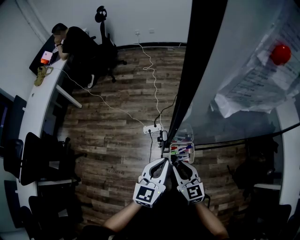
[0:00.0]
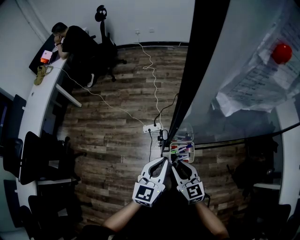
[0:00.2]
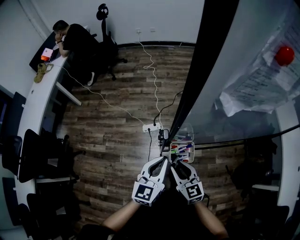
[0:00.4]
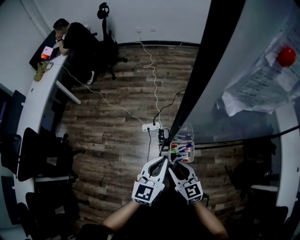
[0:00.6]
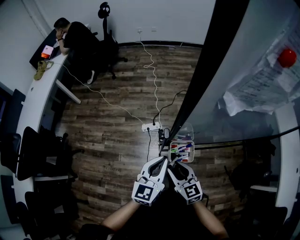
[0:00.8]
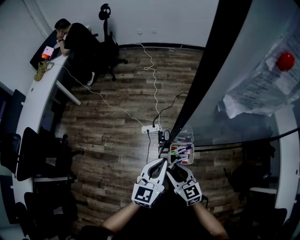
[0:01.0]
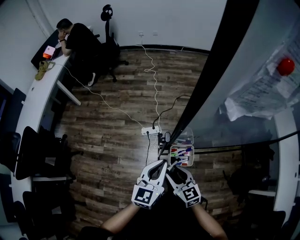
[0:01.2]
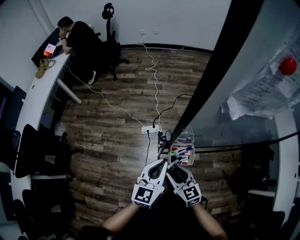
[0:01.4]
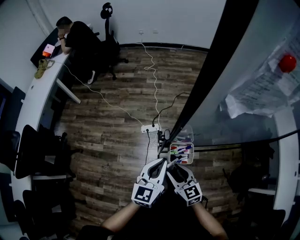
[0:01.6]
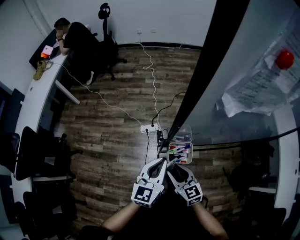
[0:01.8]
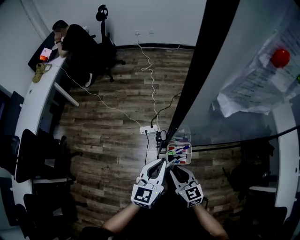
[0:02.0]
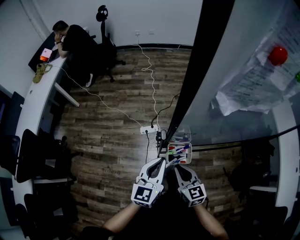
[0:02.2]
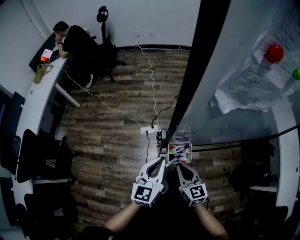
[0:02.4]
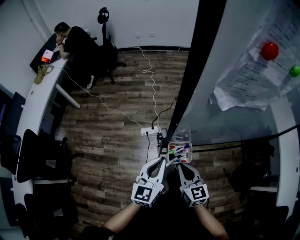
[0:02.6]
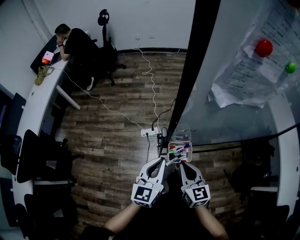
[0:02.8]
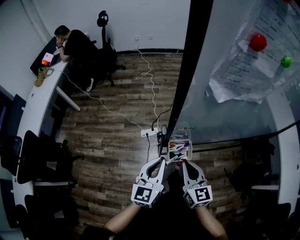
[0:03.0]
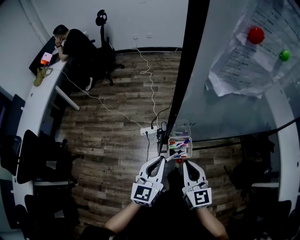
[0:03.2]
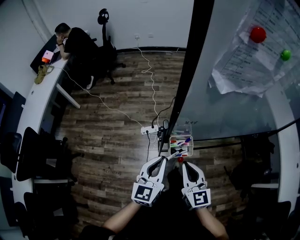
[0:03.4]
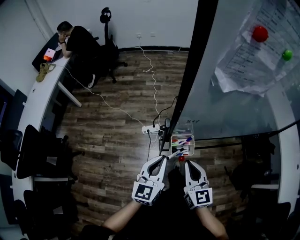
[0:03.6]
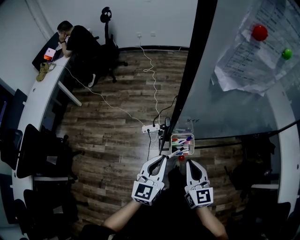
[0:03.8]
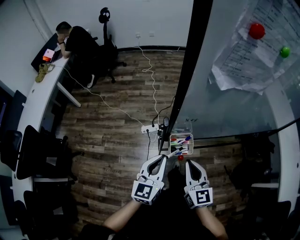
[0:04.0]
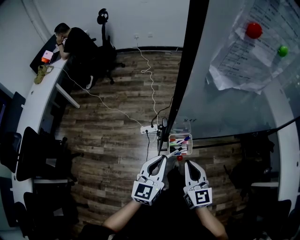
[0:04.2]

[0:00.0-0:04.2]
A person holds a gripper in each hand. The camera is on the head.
0:00.0 to 0:01.4: The grippers move only a little.
0:01.4 to 0:02.8: The right gripper goes some 10 cm upward and to the right, and closes.
0:02.8 to 0:04.2: The grippers move only a little.

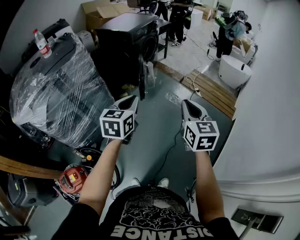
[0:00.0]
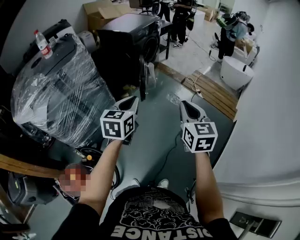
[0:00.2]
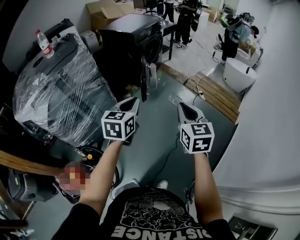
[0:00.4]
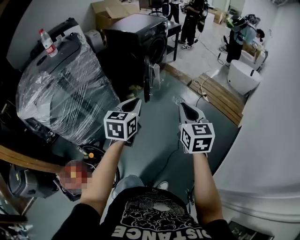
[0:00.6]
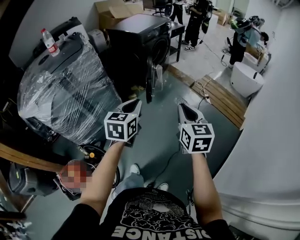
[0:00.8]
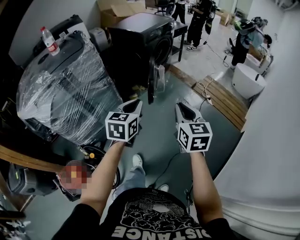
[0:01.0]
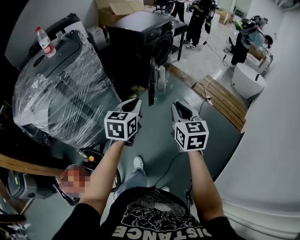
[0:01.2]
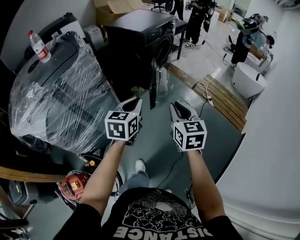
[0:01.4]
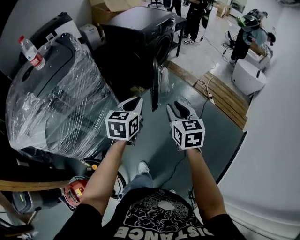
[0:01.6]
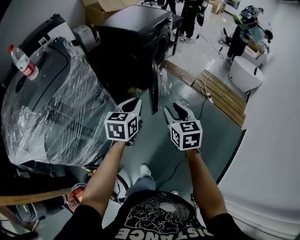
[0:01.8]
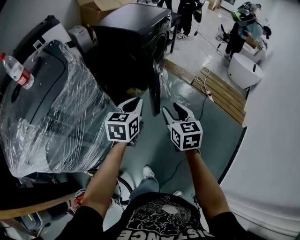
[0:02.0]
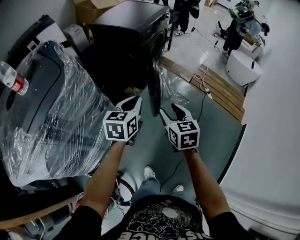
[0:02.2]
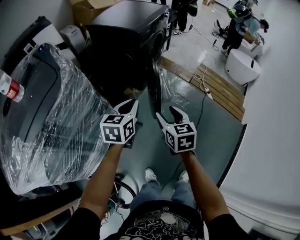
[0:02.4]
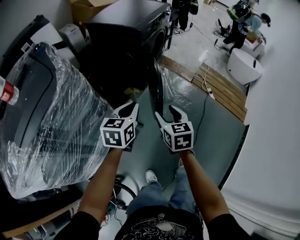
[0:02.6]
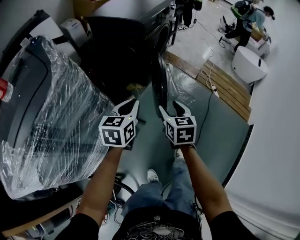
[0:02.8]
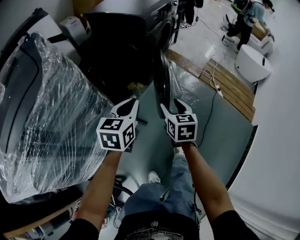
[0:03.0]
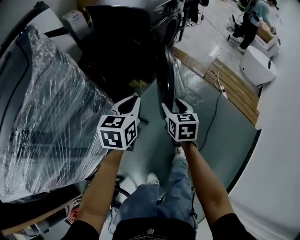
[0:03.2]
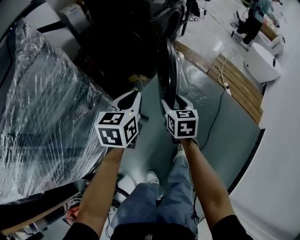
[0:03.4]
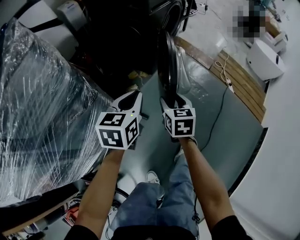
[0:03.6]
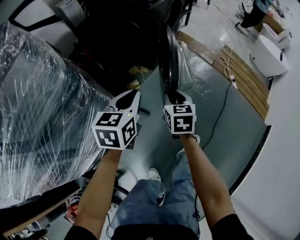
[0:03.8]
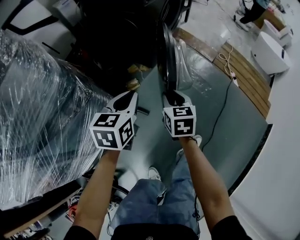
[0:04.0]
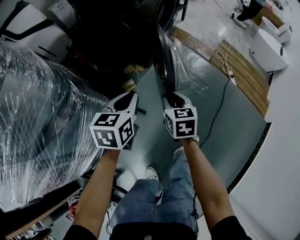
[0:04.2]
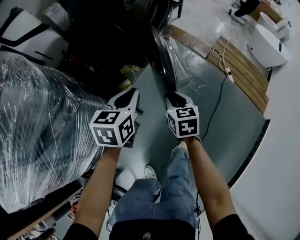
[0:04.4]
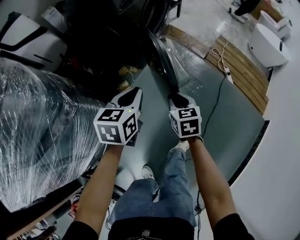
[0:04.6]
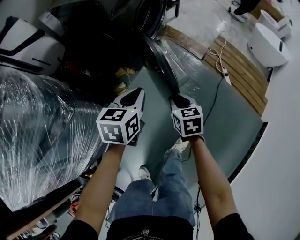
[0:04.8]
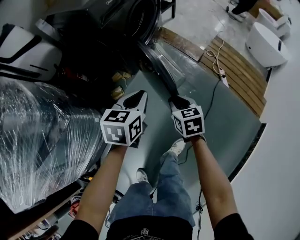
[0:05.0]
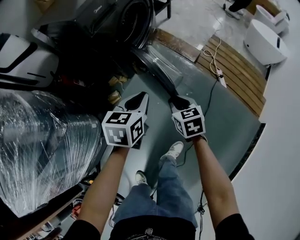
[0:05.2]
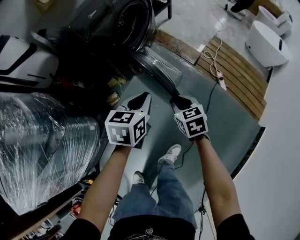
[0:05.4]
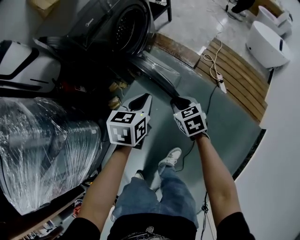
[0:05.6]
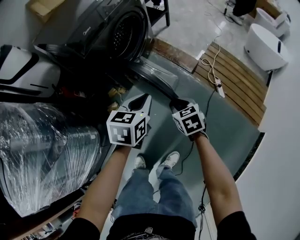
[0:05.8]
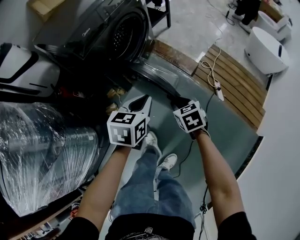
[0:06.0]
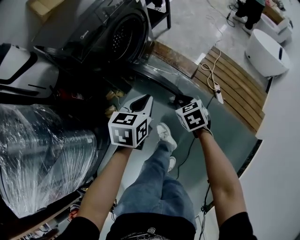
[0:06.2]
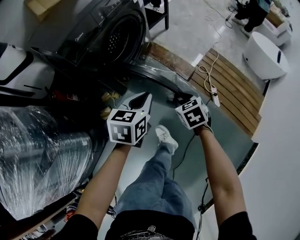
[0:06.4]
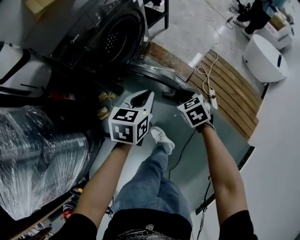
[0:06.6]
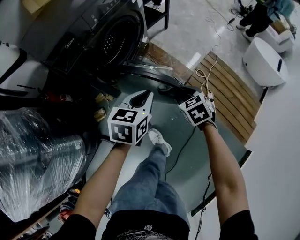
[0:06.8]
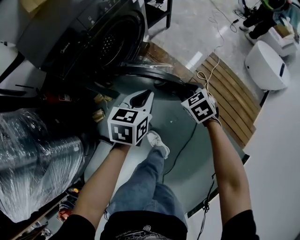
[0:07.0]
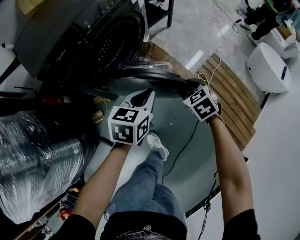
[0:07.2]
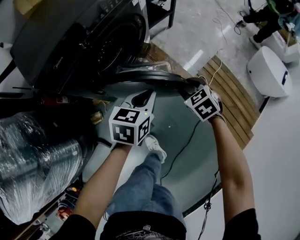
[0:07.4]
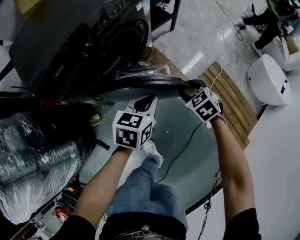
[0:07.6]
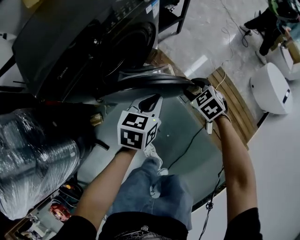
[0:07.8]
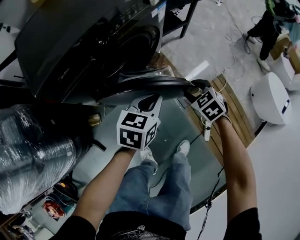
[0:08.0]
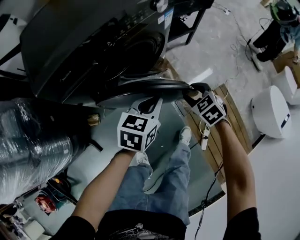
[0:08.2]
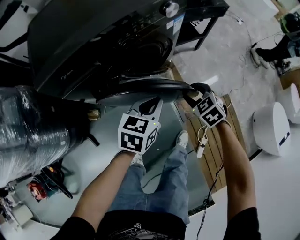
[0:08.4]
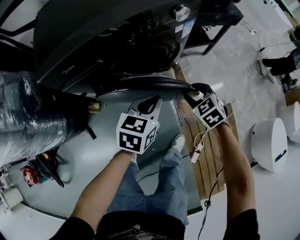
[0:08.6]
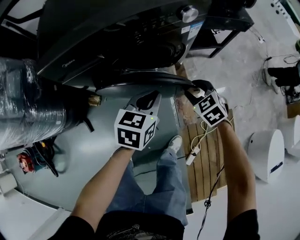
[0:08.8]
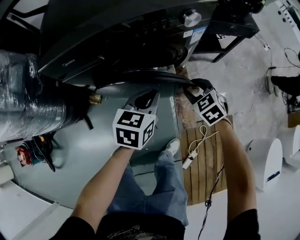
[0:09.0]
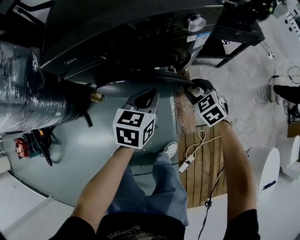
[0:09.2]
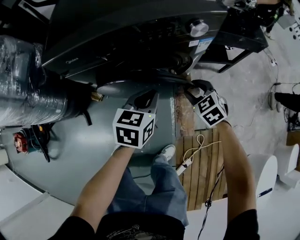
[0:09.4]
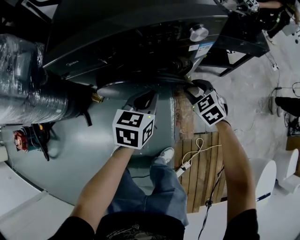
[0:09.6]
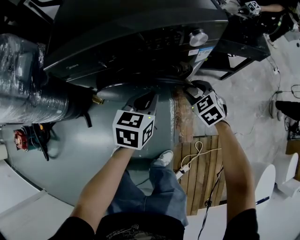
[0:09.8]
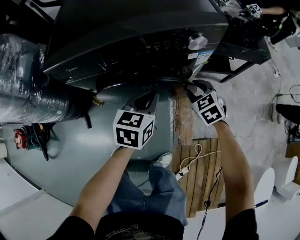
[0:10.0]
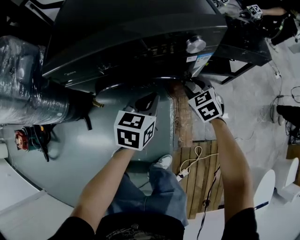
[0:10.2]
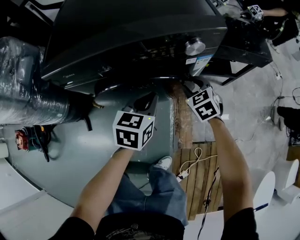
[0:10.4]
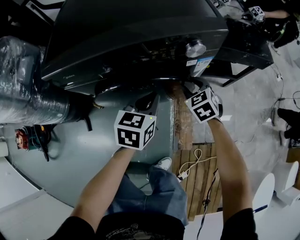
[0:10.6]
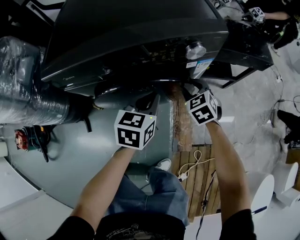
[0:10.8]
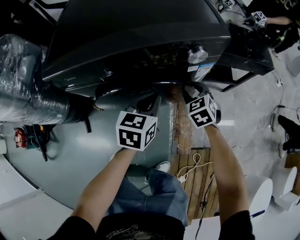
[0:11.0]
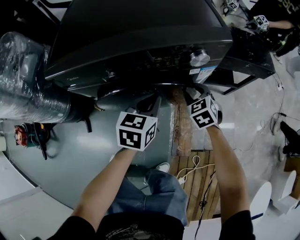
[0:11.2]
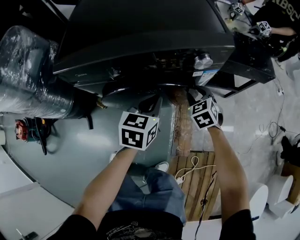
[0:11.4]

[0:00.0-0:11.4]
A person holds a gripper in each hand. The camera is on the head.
0:00.0 to 0:01.4: The left gripper travels forward by about 15 cm, while the right gripper is displaced forward and to the left by roughly 20 cm.
0:01.4 to 0:02.8: Both grippers move forward, downward and to the left, roughly 25 cm. The right gripper opens.
0:02.8 to 0:04.2: The grippers both shift downward and forward by some 20 cm. The right gripper closes.
0:04.2 to 0:05.6: Both grippers move to the right and forward, about 30 cm.
0:05.6 to 0:07.2: The left gripper goes about 20 cm forward. Meanwhile the right gripper shifts roughly 30 cm forward and to the right, rotates some 20 degrees, and opens up.
0:07.2 to 0:08.6: The right gripper changes place by some 25 cm, and rotates some 40 degrees. Meanwhile the left gripper moves about 15 cm, and swivels some 30 degrees.
0:08.6 to 0:10.0: The left gripper shifts roughly 10 cm forward, and turns by some 20 degrees. The right gripper heads forward, covering some 15 cm.
0:10.0 to 0:11.4: The grippers move only a little.

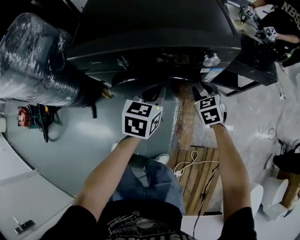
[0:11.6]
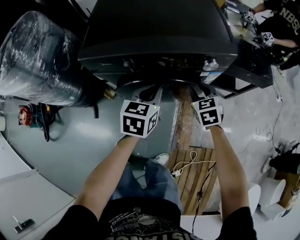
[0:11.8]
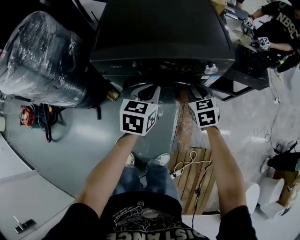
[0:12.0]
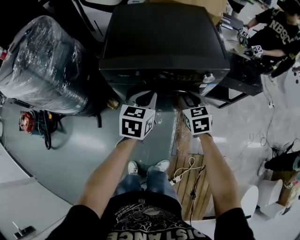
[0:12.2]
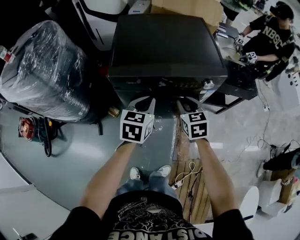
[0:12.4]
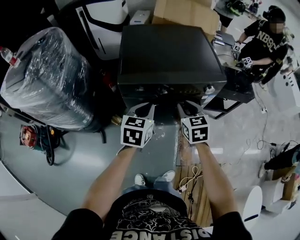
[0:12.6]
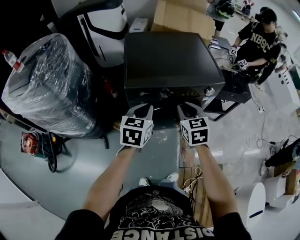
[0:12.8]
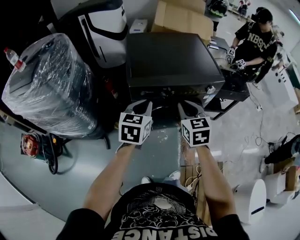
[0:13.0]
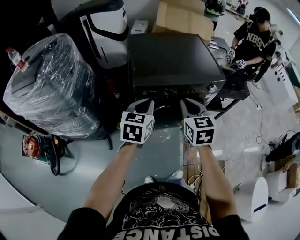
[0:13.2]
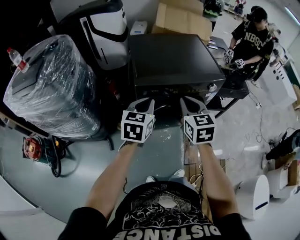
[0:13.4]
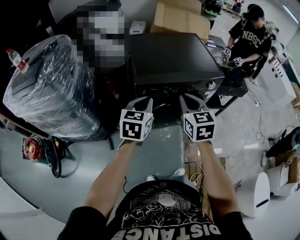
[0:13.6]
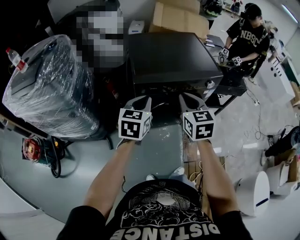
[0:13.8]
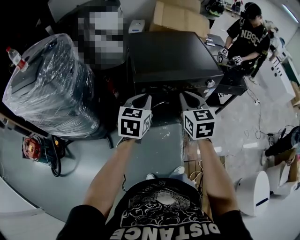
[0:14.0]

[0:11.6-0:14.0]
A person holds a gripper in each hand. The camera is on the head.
0:11.6 to 0:12.8: The right gripper goes some 35 cm upward, to the left and backward, and changes its angle by some 20 degrees. The left gripper heads to the left and upward, covering approximately 25 cm.
0:12.8 to 0:14.0: The left gripper shifts some 5 cm to the left. The right gripper travels upward, backward and to the left by some 10 cm.

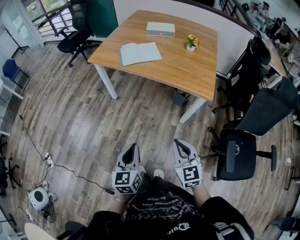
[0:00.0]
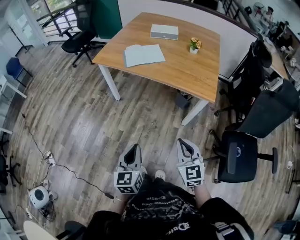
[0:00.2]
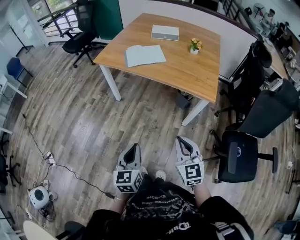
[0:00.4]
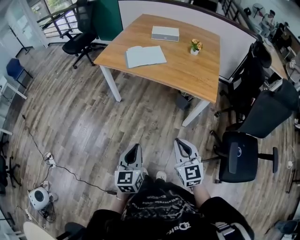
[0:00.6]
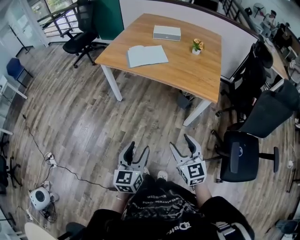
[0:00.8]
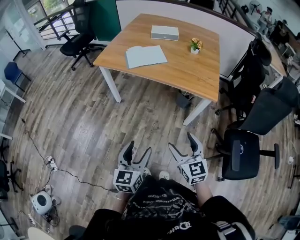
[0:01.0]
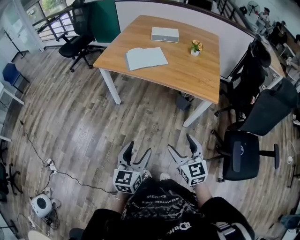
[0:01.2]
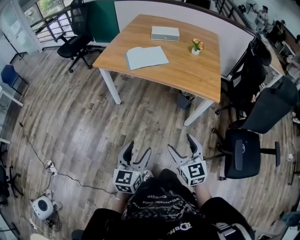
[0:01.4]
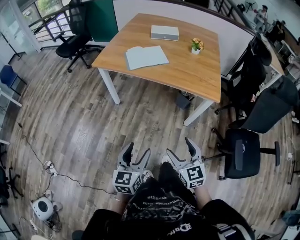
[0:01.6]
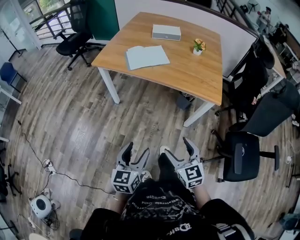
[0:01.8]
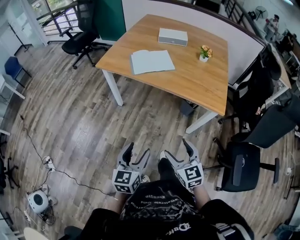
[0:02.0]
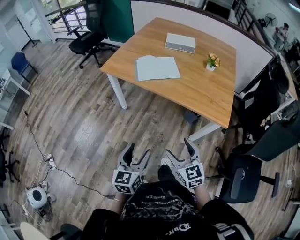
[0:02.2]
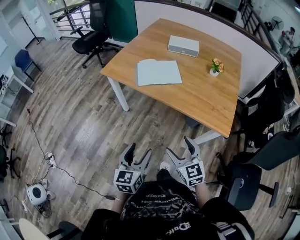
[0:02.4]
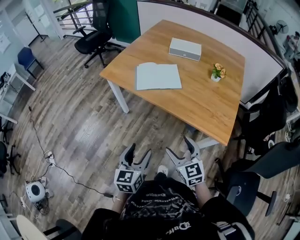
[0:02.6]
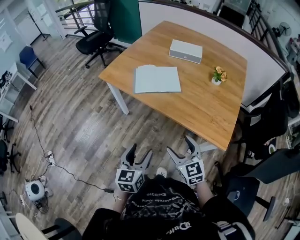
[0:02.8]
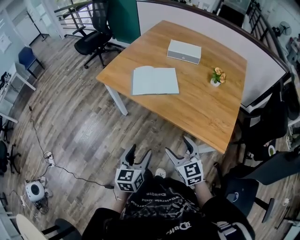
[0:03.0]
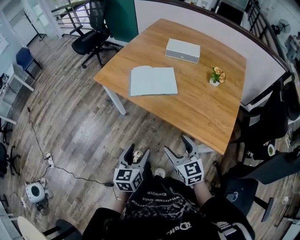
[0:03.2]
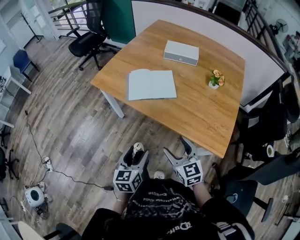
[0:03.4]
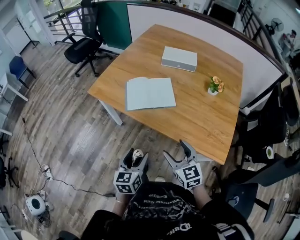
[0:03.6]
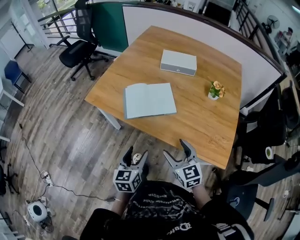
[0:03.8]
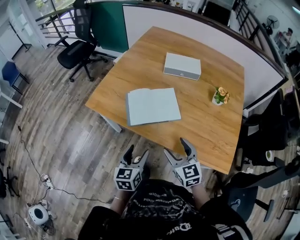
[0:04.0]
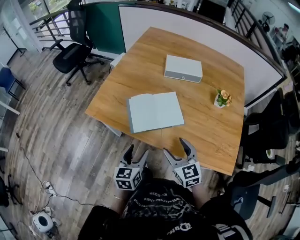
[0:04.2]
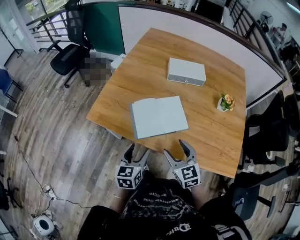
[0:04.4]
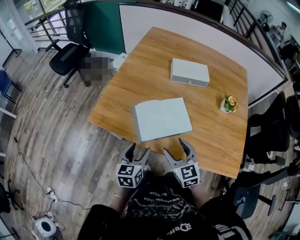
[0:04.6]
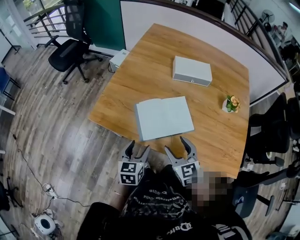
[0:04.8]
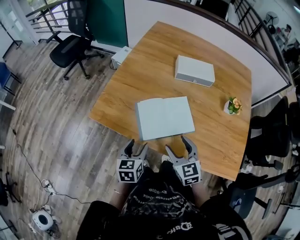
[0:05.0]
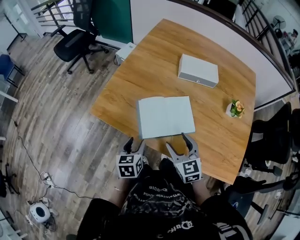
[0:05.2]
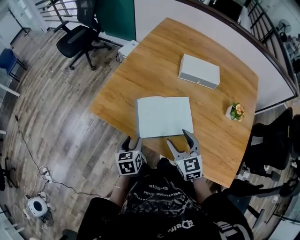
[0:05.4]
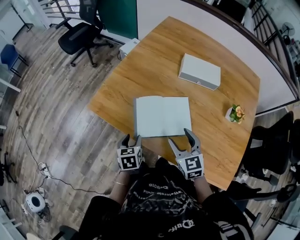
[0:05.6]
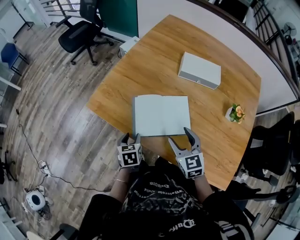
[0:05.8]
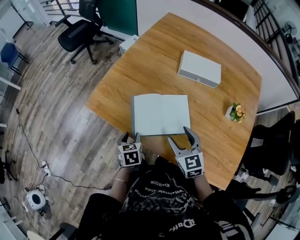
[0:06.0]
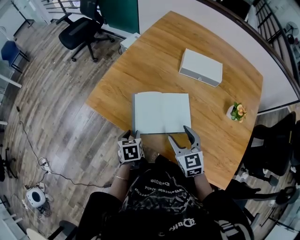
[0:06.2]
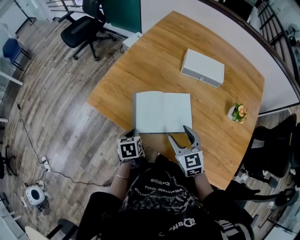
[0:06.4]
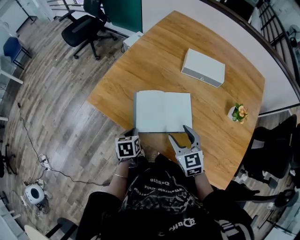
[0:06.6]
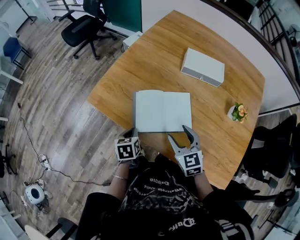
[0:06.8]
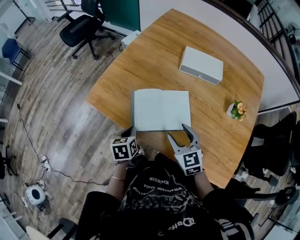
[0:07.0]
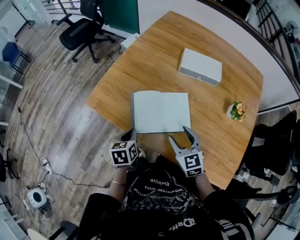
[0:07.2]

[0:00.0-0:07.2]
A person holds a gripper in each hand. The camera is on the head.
0:00.0 to 0:01.4: The two grippers go approximately 5 cm to the left. The right gripper opens; the left gripper opens its fingers.
0:01.4 to 0:02.8: The left gripper travels forward and to the right by some 25 cm. The right gripper travels forward by roughly 25 cm.
0:02.8 to 0:04.4: The two grippers go some 30 cm forward.
0:04.4 to 0:05.8: The right gripper heads forward, covering some 10 cm, while the left gripper travels downward and forward by approximately 10 cm, and swivels roughly 30 degrees.
0:05.8 to 0:07.2: The left gripper closes up.
